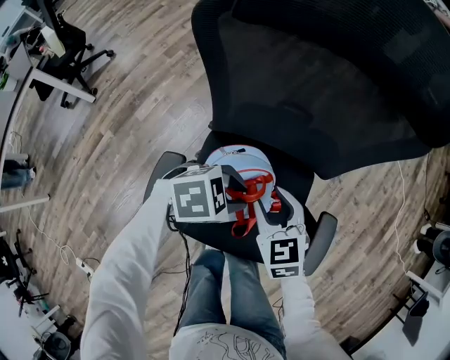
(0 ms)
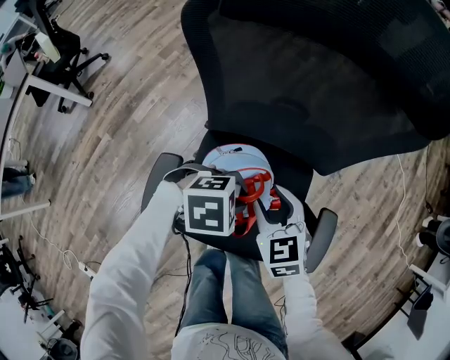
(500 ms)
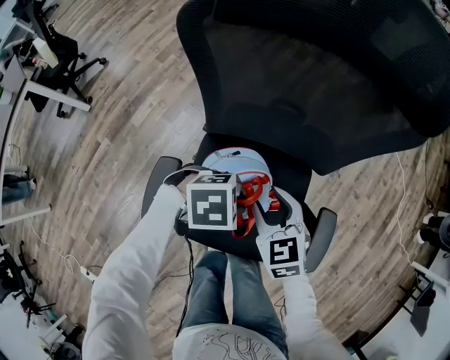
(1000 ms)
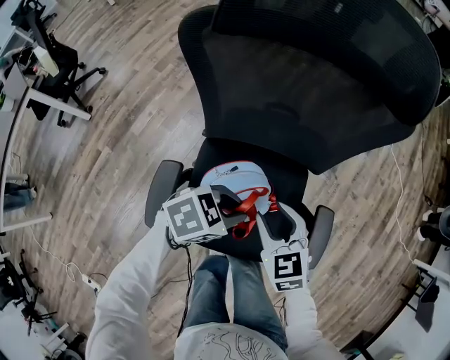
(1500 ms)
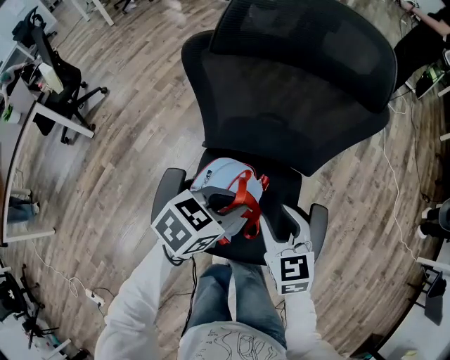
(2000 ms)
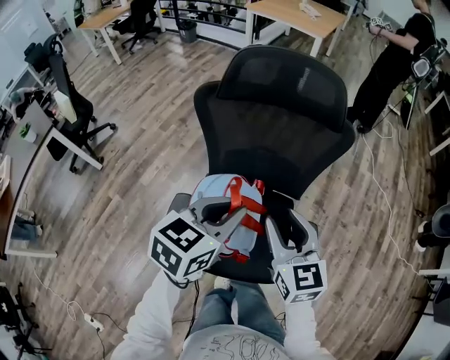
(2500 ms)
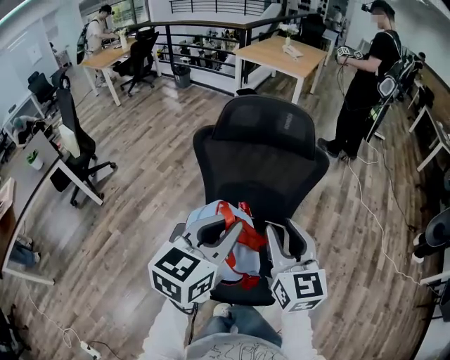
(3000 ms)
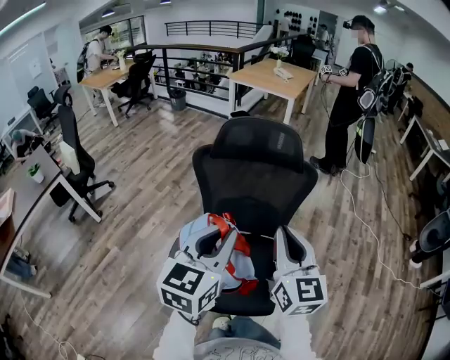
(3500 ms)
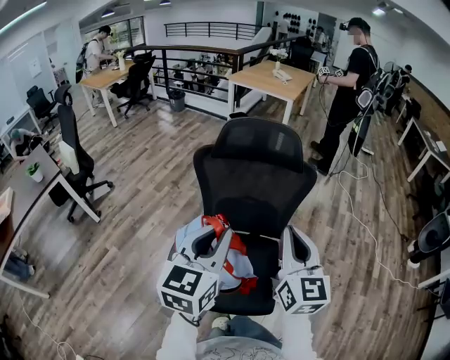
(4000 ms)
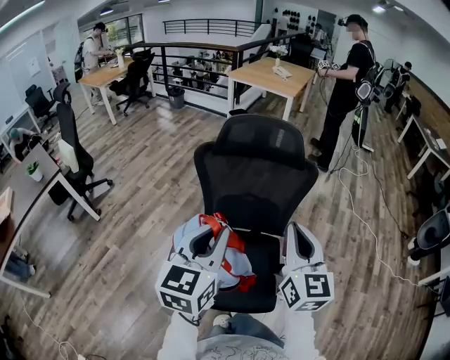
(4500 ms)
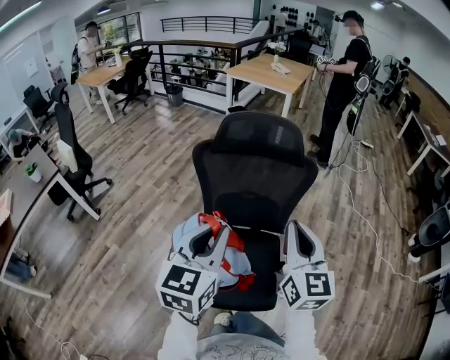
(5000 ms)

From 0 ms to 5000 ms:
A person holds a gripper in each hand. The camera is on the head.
From 0 ms to 2500 ms: The two grippers go about 25 cm upward. The right gripper turns by approximately 30 degrees; the left gripper swivels about 50 degrees.
From 2500 ms to 5000 ms: The left gripper goes approximately 15 cm upward and backward, and rotates some 30 degrees, while the right gripper travels upward and to the right by approximately 15 cm, rotates approximately 20 degrees, and closes.

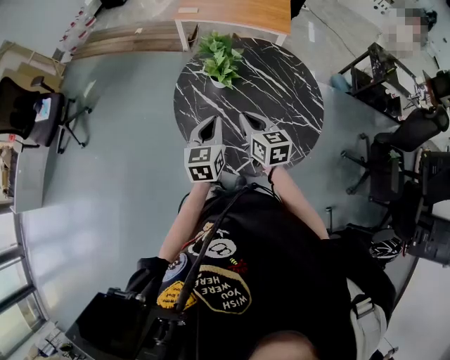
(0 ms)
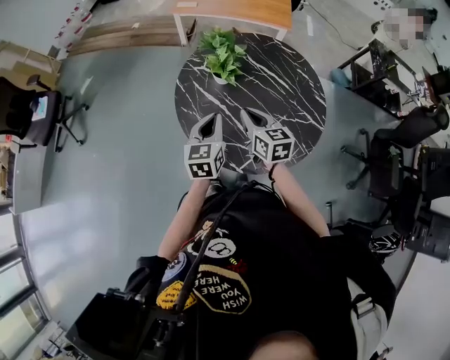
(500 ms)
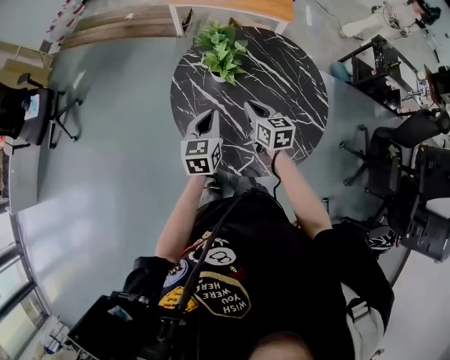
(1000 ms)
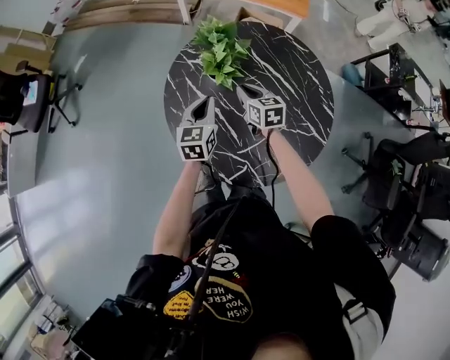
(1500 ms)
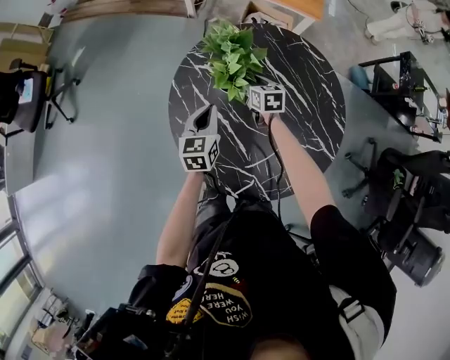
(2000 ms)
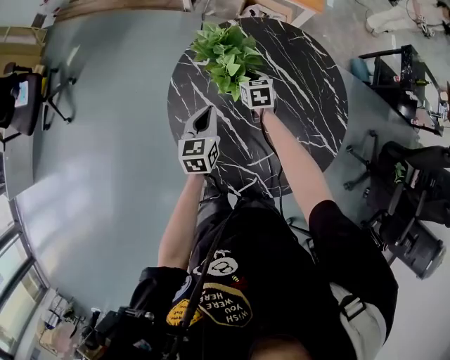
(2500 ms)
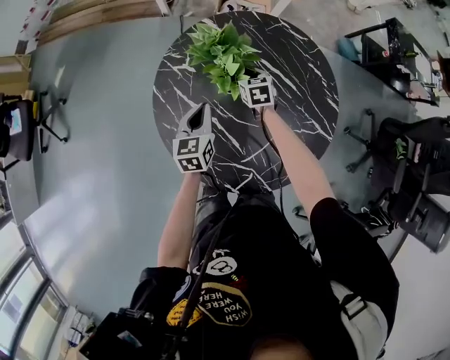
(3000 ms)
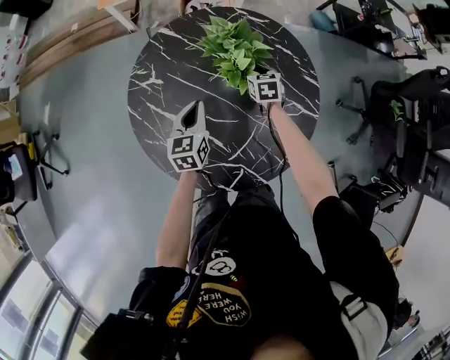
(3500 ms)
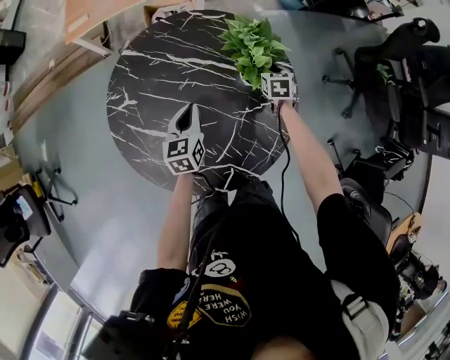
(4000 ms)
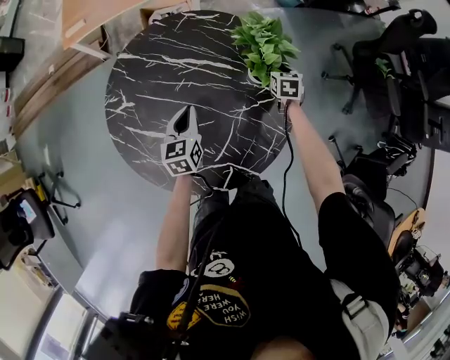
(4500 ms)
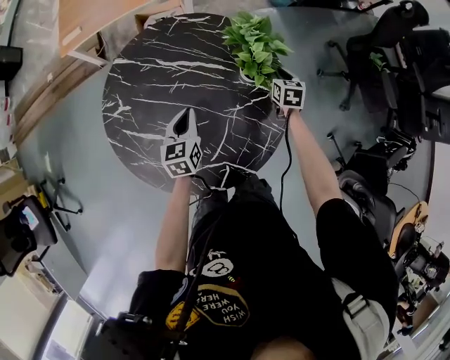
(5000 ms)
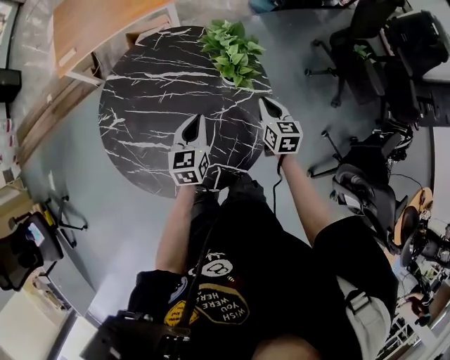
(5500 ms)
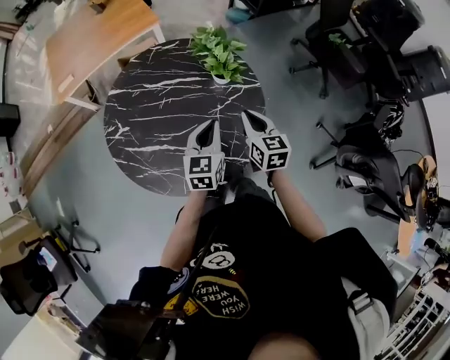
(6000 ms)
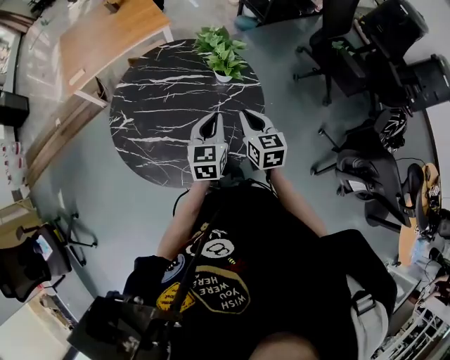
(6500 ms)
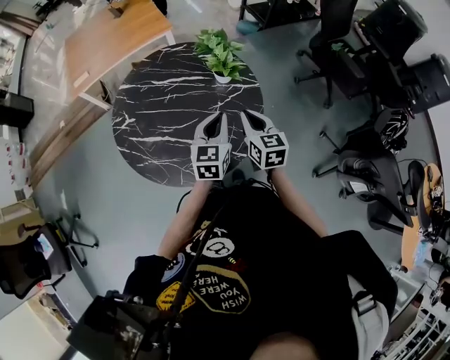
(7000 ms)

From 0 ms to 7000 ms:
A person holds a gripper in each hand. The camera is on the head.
From 0 ms to 2000 ms: The left gripper moves forward and downward, about 25 cm. The right gripper travels forward and downward by approximately 40 cm, and opens its fingers.
From 2000 ms to 3500 ms: The right gripper ends up approximately 20 cm from where it was, changes its angle by about 20 degrees, and closes up; the left gripper changes place by some 10 cm.
From 3500 ms to 5000 ms: The left gripper goes roughly 10 cm to the right. The right gripper goes some 25 cm to the right, and changes its angle by roughly 20 degrees.
From 5000 ms to 7000 ms: The right gripper goes approximately 35 cm backward and upward, turns by some 20 degrees, and closes. Meanwhile the left gripper heads upward, to the right and backward, covering about 25 cm, and swivels approximately 20 degrees.

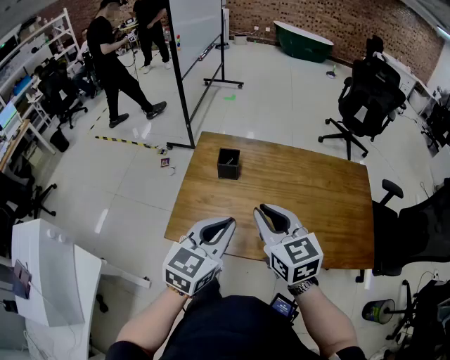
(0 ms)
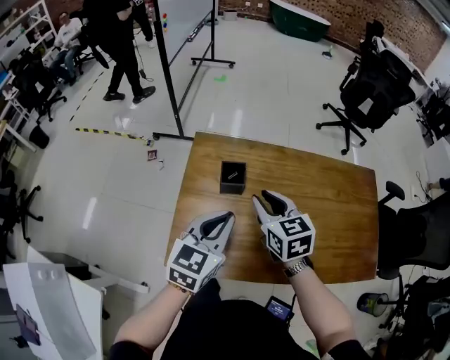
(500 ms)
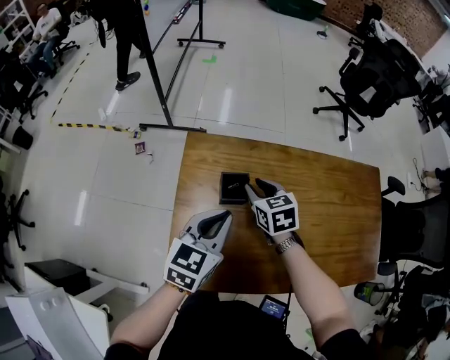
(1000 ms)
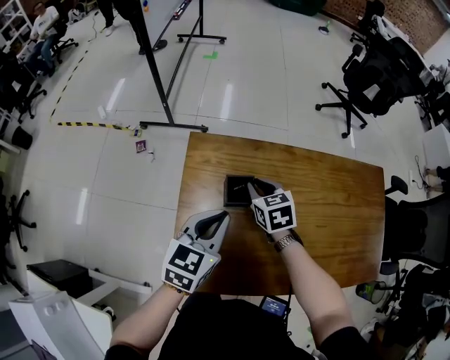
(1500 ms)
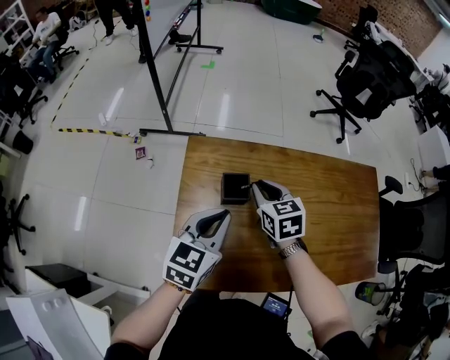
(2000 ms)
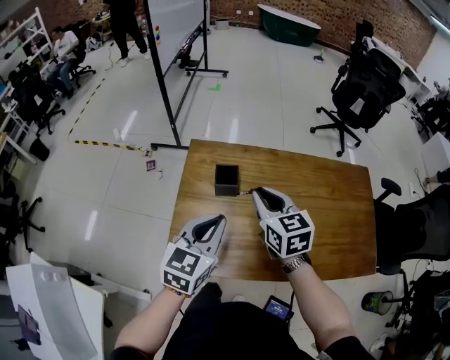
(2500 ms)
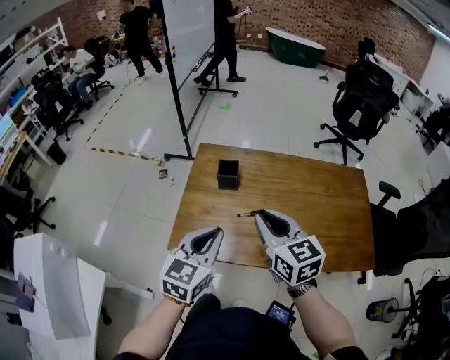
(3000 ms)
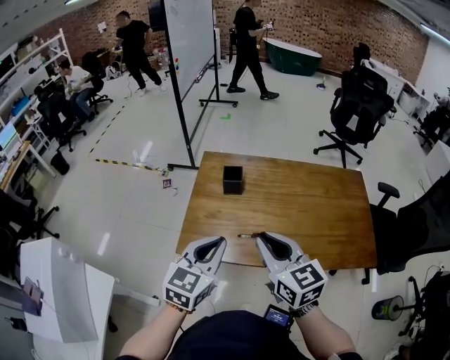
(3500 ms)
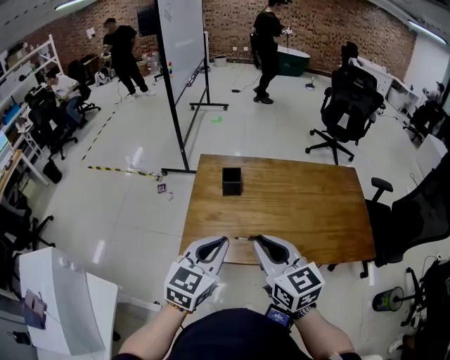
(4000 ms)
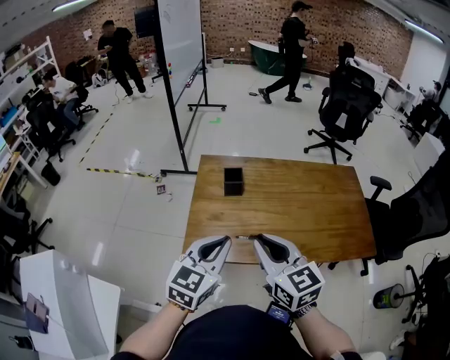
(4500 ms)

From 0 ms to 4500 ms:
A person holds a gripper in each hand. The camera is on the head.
From 0 ms to 2000 ms: The right gripper moves forward and downward, some 35 cm, and changes its angle by roughly 20 degrees; the left gripper is displaced forward and to the left by approximately 30 cm.
From 2000 ms to 4500 ms: The right gripper heads backward and upward, covering some 50 cm, and swivels approximately 30 degrees; the left gripper heads backward, covering roughly 30 cm.

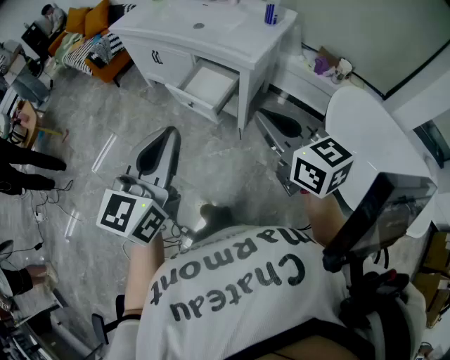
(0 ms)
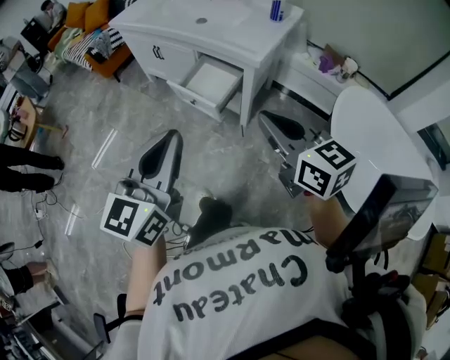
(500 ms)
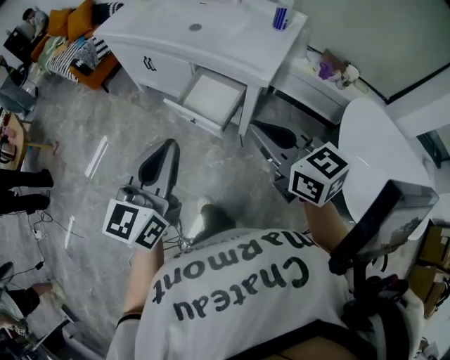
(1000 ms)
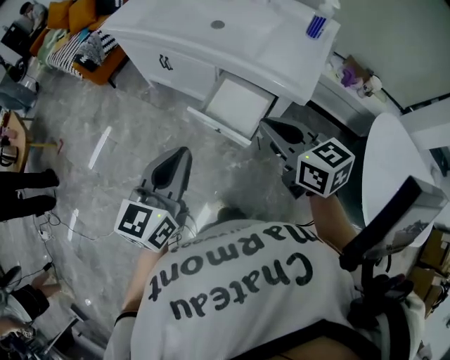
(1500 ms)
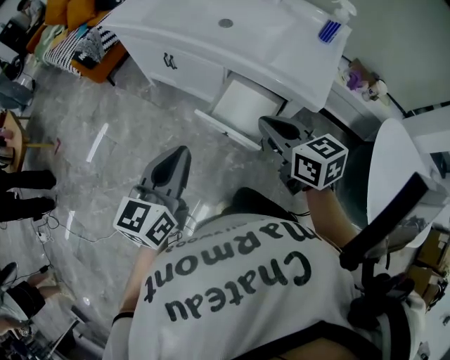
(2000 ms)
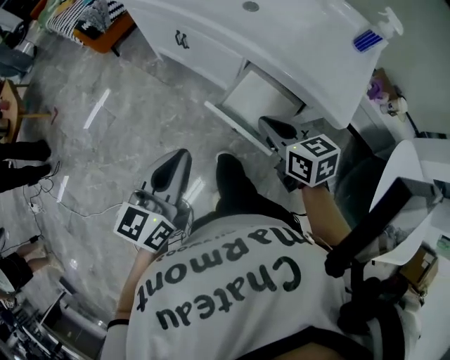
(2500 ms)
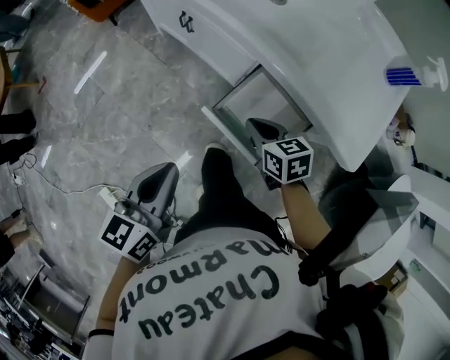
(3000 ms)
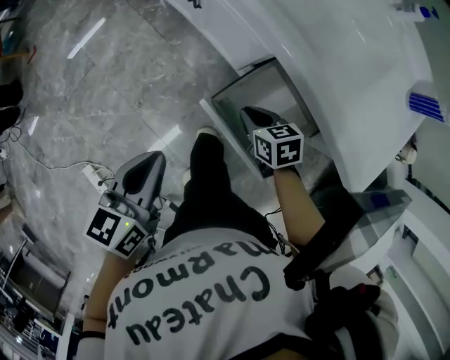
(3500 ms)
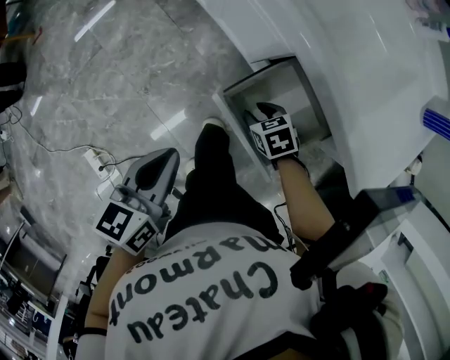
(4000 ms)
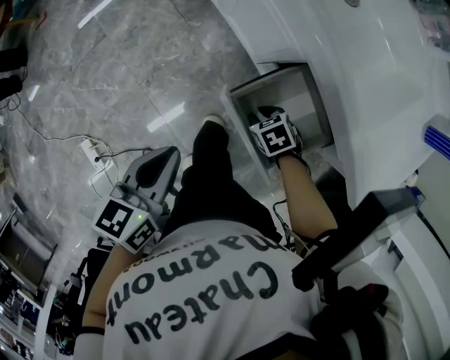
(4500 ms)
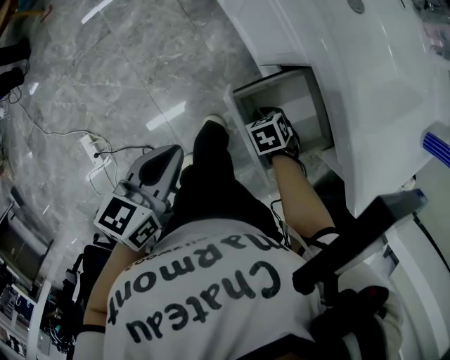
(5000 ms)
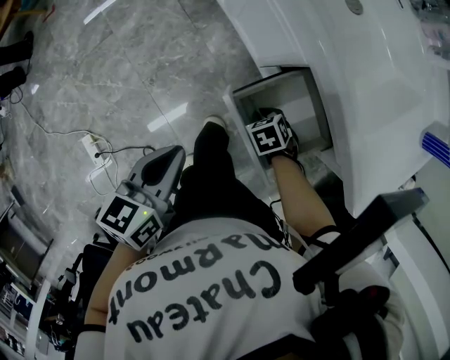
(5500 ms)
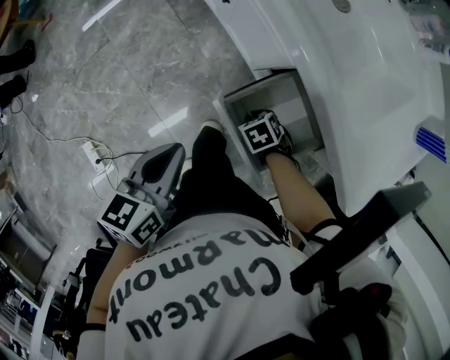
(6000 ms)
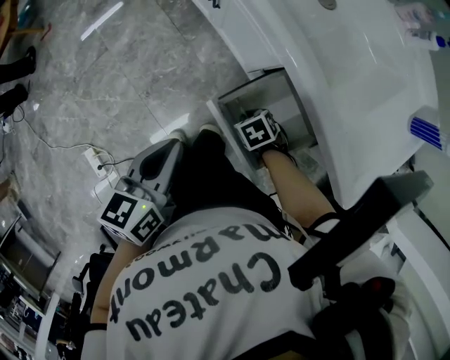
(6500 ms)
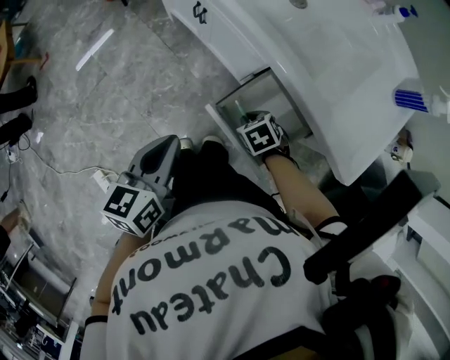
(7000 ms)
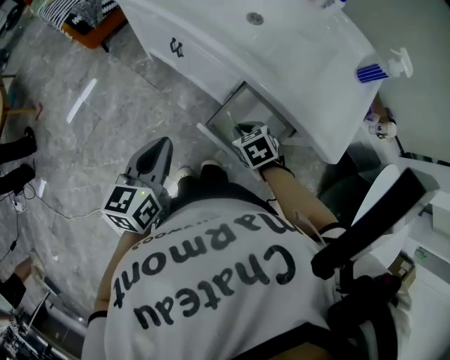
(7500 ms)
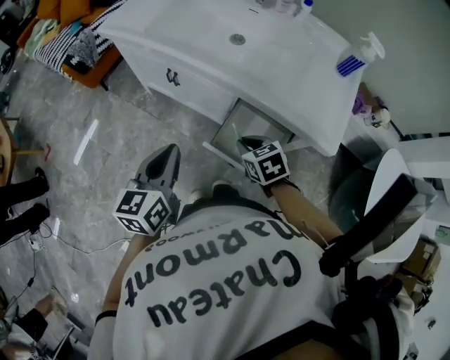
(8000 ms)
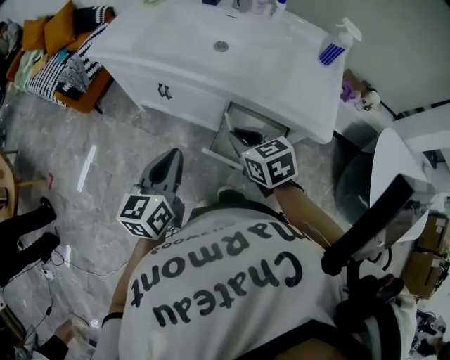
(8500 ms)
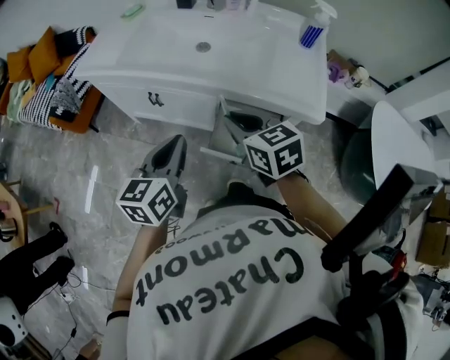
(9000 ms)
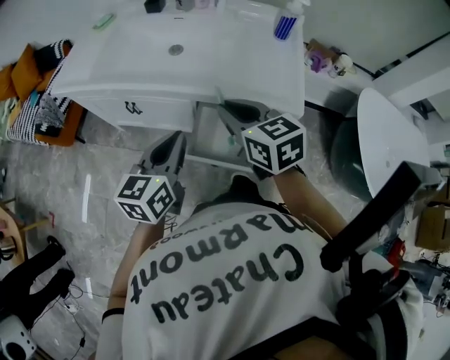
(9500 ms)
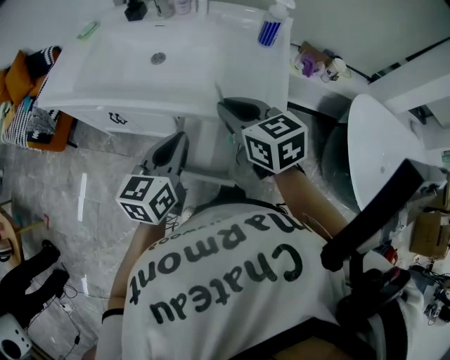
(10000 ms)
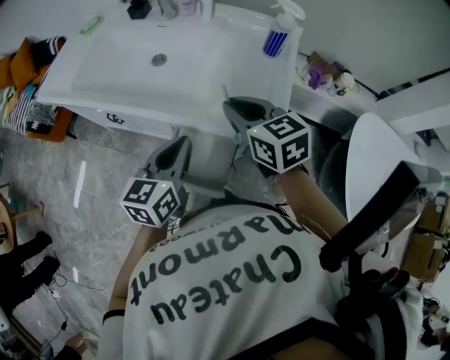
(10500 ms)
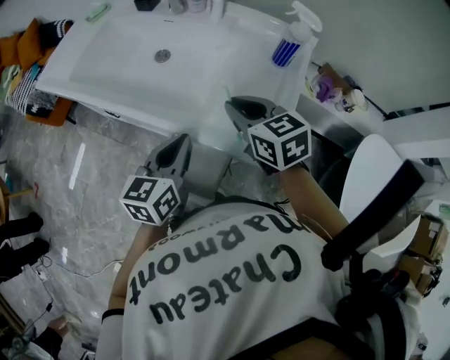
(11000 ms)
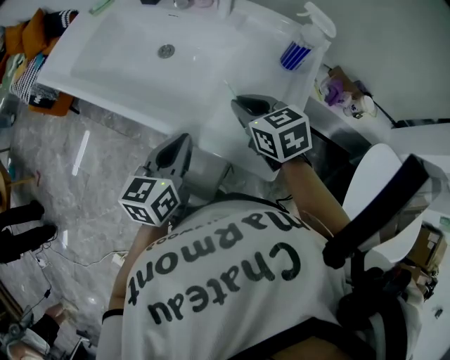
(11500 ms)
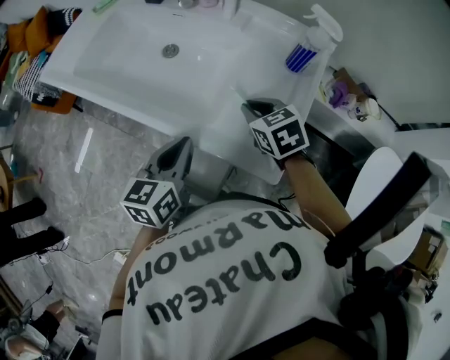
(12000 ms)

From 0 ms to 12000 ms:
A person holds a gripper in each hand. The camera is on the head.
From 0 ms to 2000 ms: The right gripper shifts about 35 cm forward and to the left. Meanwhile the left gripper heads forward, to the left and downward, covering approximately 35 cm.
From 2000 ms to 4000 ms: The right gripper moves downward and forward, roughly 40 cm, angles its fingers downward, by some 40 degrees, and opens its fingers, while the left gripper goes approximately 20 cm downward and forward, and turns by roughly 30 degrees.
From 4000 ms to 6000 ms: The right gripper closes up.
From 6000 ms to 8000 ms: The left gripper goes roughly 10 cm upward, and turns by approximately 30 degrees. The right gripper moves upward, some 25 cm, and swivels some 40 degrees.
From 8000 ms to 10000 ms: The left gripper goes about 20 cm to the right, and changes its angle by roughly 20 degrees. Meanwhile the right gripper shifts some 25 cm upward and to the right, and swivels some 30 degrees.
From 10000 ms to 12000 ms: The left gripper shifts about 10 cm forward, to the right and downward, while the right gripper goes roughly 20 cm forward, downward and to the right, and changes its angle by some 30 degrees.
